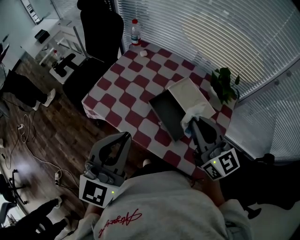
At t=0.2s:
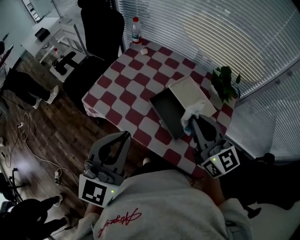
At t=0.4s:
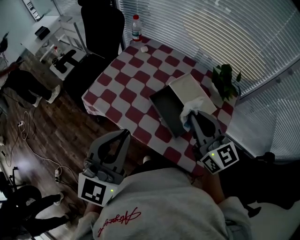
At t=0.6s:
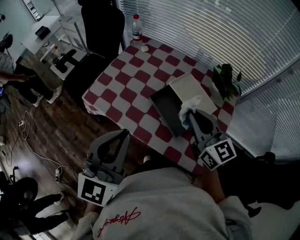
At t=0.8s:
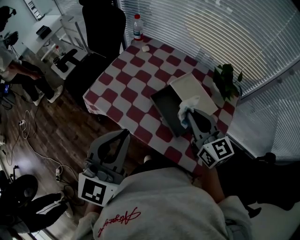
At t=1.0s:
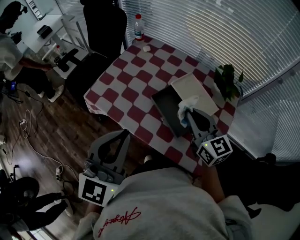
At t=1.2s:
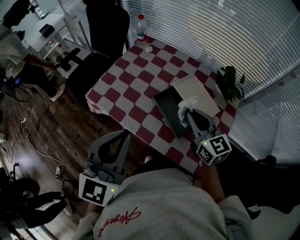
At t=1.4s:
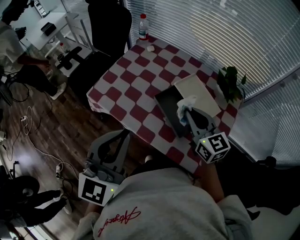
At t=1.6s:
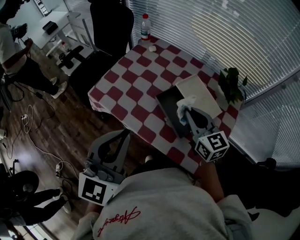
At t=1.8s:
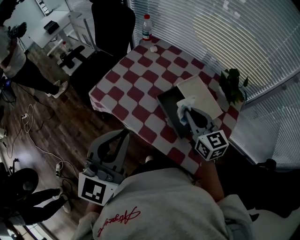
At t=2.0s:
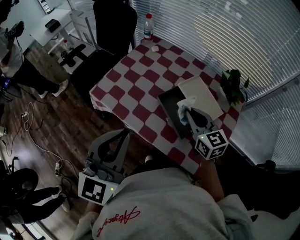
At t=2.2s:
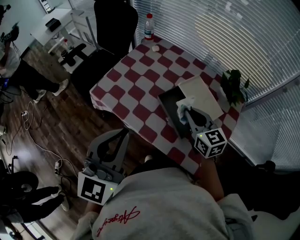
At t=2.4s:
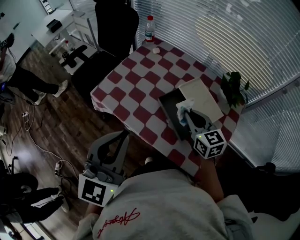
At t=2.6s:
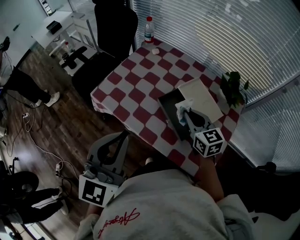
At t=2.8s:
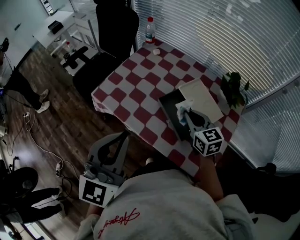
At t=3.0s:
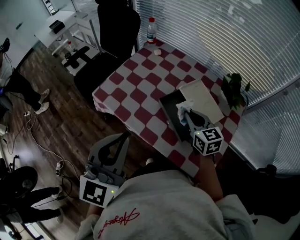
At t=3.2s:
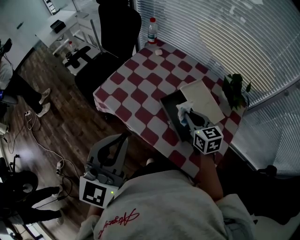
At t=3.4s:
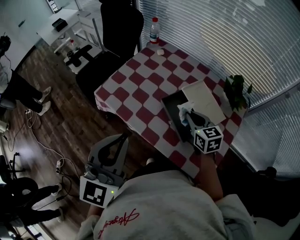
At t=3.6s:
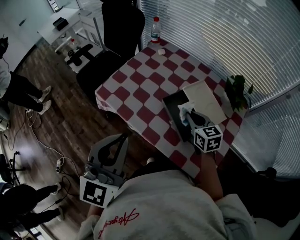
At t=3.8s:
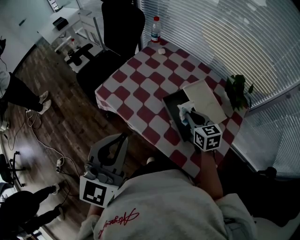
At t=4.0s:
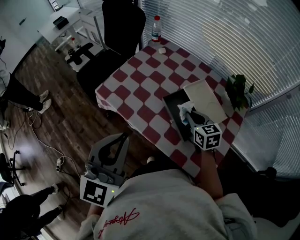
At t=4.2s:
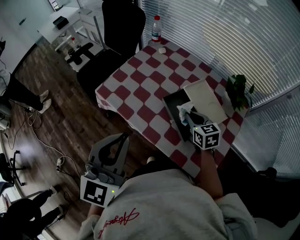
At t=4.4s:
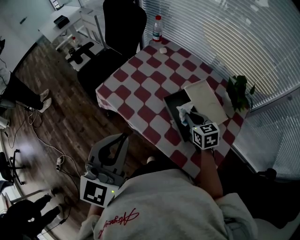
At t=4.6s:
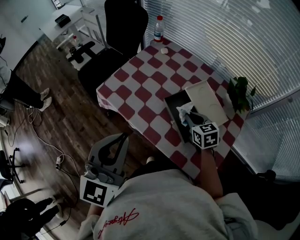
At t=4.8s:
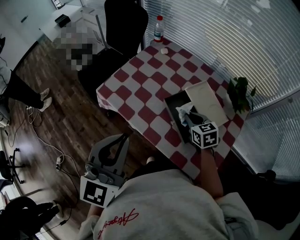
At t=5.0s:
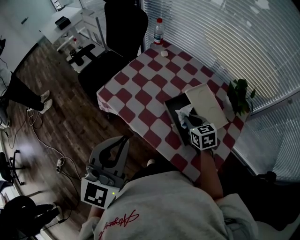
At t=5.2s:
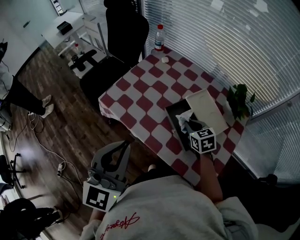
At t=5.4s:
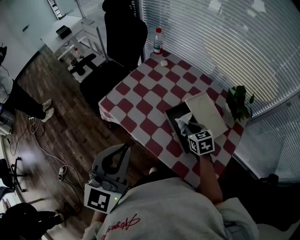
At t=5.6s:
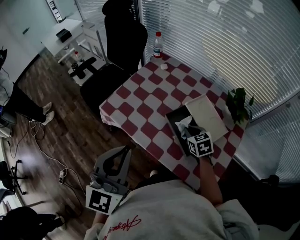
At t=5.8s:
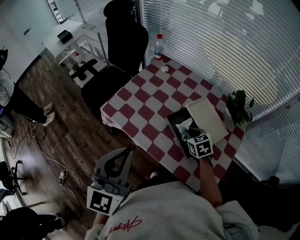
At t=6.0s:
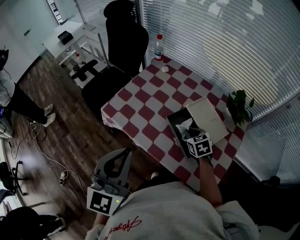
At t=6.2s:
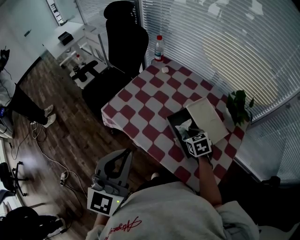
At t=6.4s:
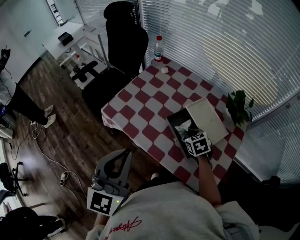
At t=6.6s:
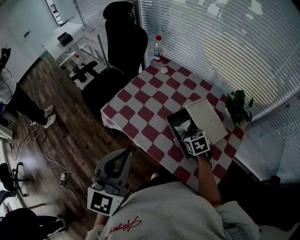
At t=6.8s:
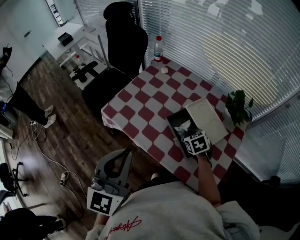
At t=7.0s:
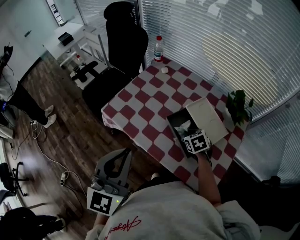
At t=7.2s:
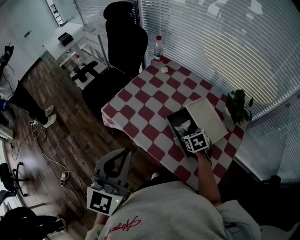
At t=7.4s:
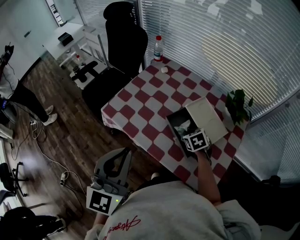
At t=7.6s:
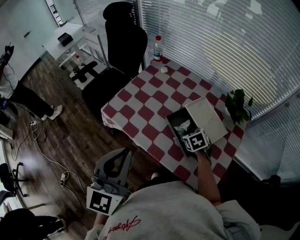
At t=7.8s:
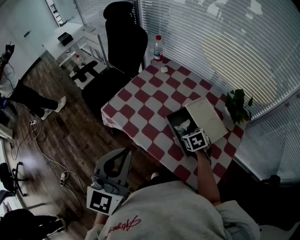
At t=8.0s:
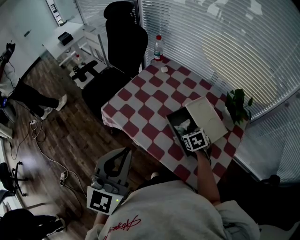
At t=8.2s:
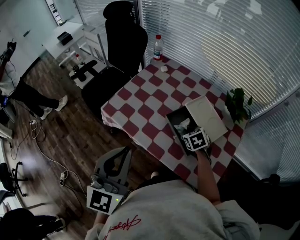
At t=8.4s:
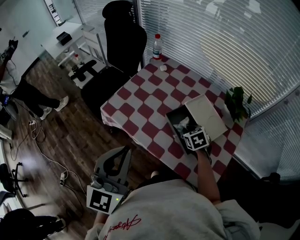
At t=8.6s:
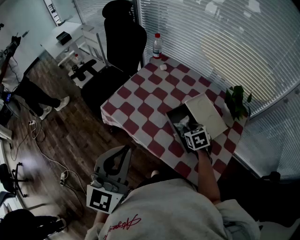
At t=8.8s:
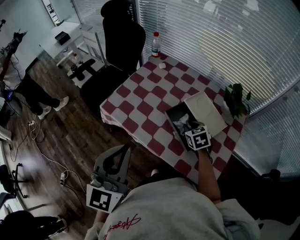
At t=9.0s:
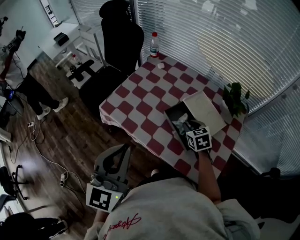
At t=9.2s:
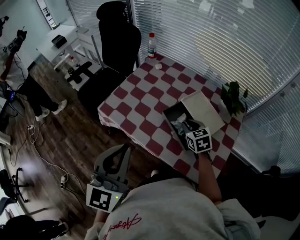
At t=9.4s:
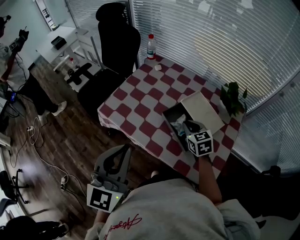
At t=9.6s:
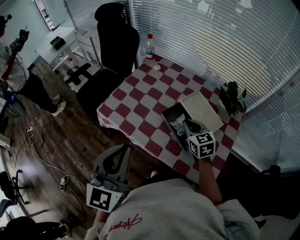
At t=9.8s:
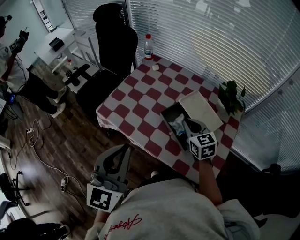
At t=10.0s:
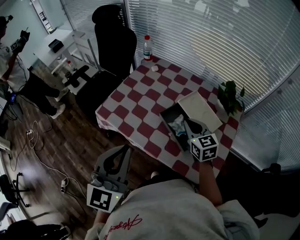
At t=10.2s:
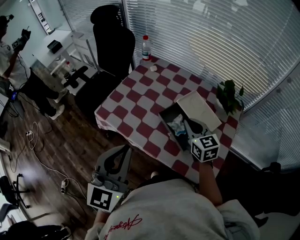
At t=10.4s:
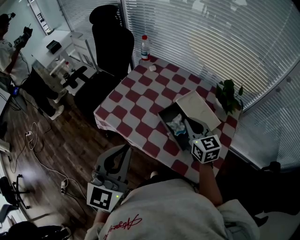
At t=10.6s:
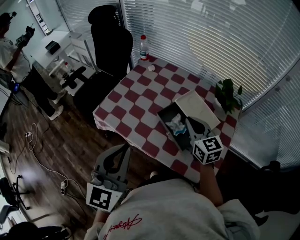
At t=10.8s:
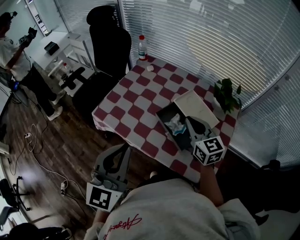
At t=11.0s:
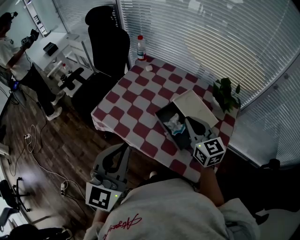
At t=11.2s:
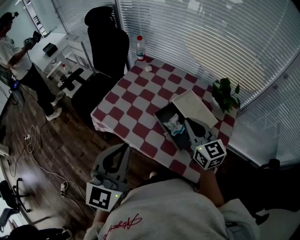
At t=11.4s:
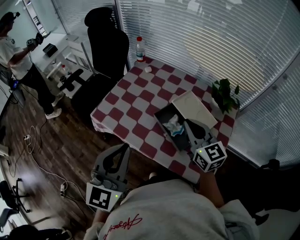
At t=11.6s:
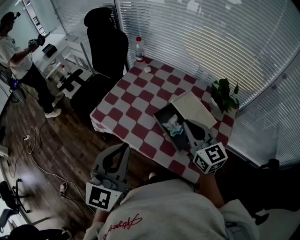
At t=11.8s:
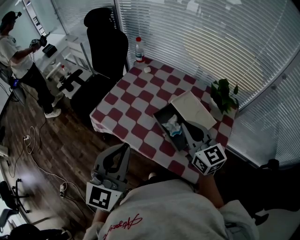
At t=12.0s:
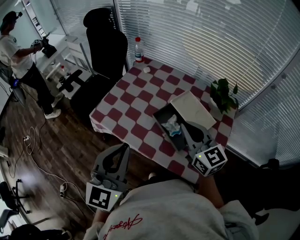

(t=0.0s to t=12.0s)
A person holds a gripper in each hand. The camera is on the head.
t=0.0s - t=1.6s: The right gripper travels downward by approximately 10 cm.
t=1.6s - t=3.0s: The right gripper travels downward by some 5 cm.
t=3.0s - t=4.4s: The right gripper travels downward by roughly 5 cm.
t=4.4s - t=6.0s: The grippers make only small movements.
t=6.0s - t=9.0s: The grippers stay close to where they were, moving slightly.
t=9.0s - t=10.4s: The right gripper is displaced upward by approximately 10 cm, swivels some 30 degrees, and closes.
t=10.4s - t=12.0s: The right gripper is displaced upward by roughly 10 cm.

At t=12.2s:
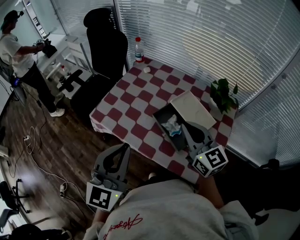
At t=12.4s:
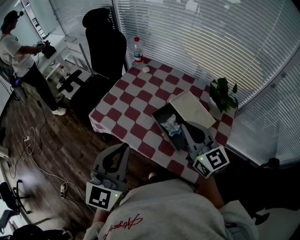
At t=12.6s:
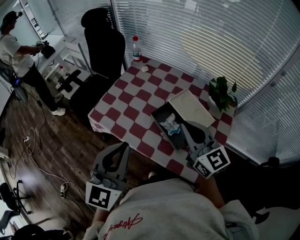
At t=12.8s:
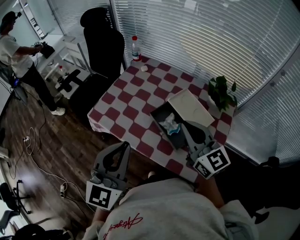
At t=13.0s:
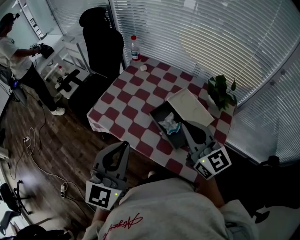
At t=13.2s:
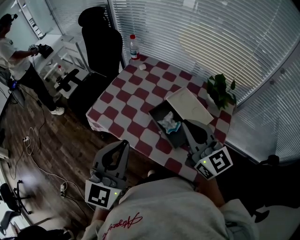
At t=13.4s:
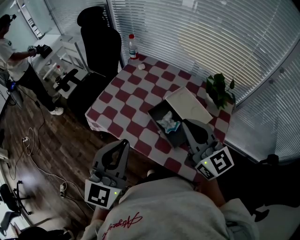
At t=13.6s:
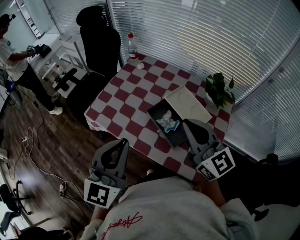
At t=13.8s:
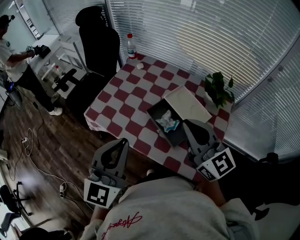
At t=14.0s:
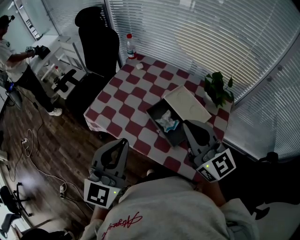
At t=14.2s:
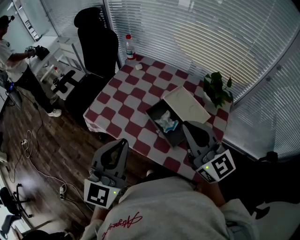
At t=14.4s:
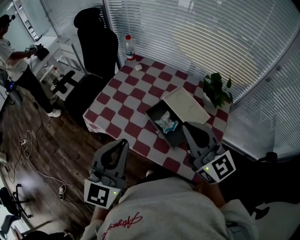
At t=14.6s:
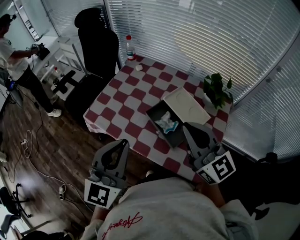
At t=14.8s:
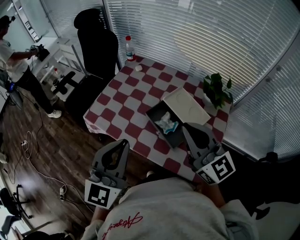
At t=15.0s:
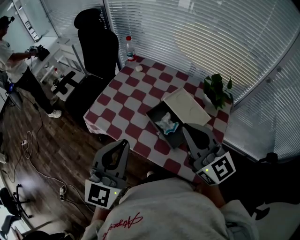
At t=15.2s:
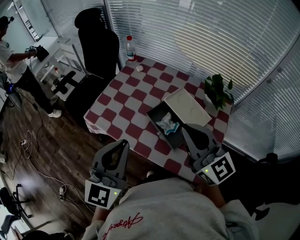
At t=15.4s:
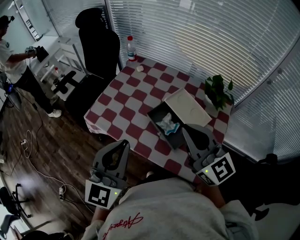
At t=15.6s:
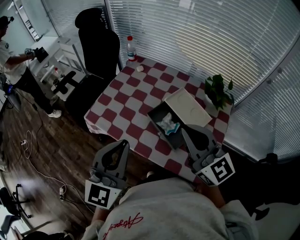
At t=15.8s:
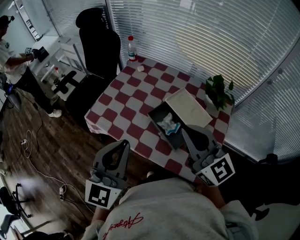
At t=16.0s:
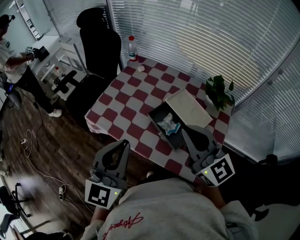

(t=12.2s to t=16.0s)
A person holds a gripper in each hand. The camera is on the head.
t=12.2s - t=13.4s: The right gripper ends up roughly 5 cm from where it was.
t=13.4s - t=16.0s: The grippers stay close to where they were, moving slightly.

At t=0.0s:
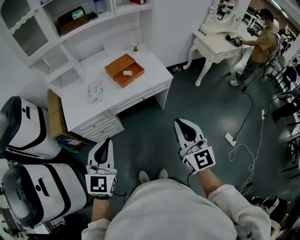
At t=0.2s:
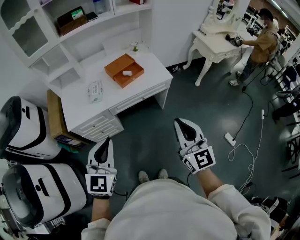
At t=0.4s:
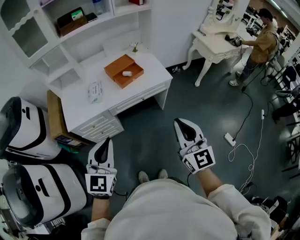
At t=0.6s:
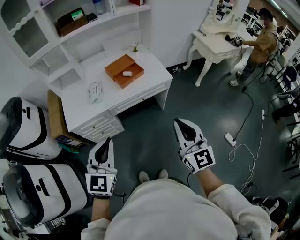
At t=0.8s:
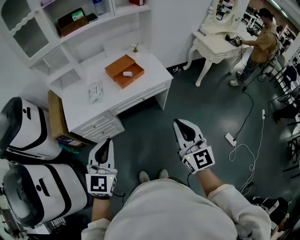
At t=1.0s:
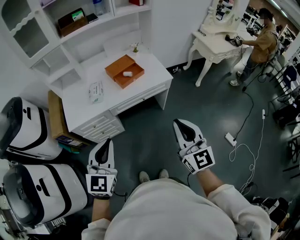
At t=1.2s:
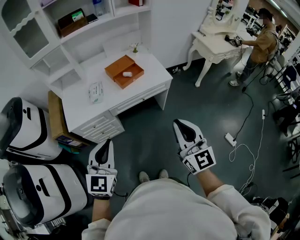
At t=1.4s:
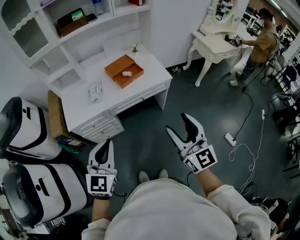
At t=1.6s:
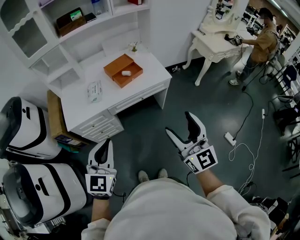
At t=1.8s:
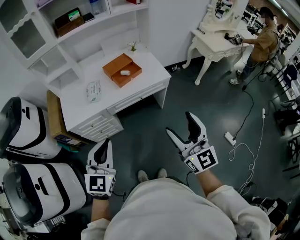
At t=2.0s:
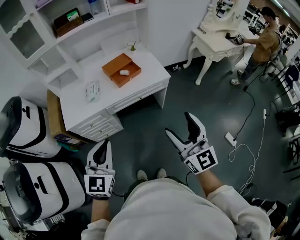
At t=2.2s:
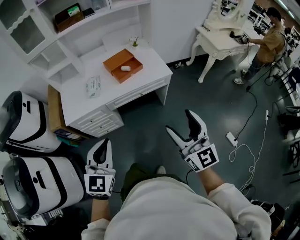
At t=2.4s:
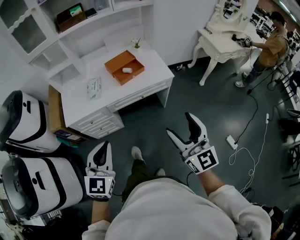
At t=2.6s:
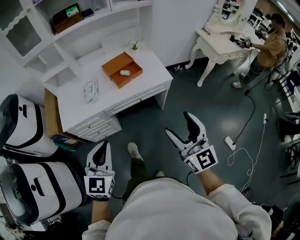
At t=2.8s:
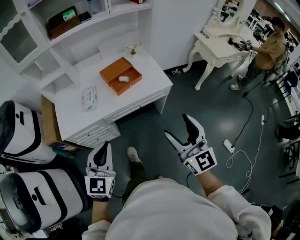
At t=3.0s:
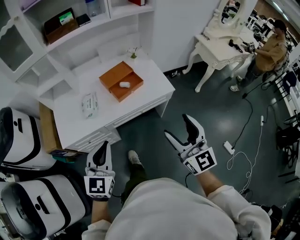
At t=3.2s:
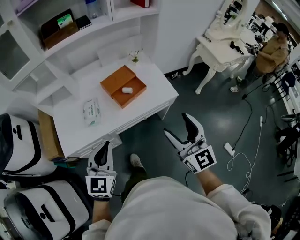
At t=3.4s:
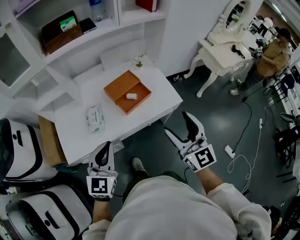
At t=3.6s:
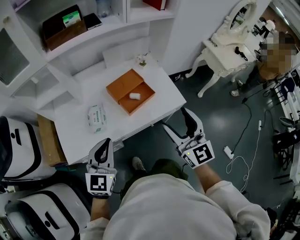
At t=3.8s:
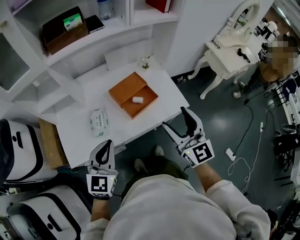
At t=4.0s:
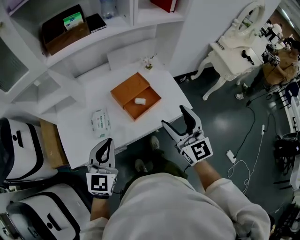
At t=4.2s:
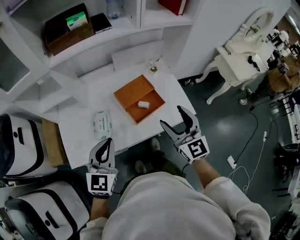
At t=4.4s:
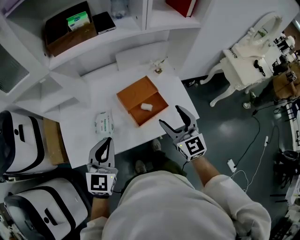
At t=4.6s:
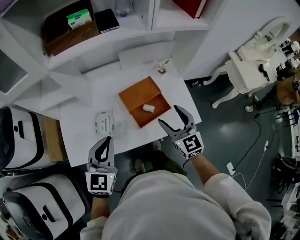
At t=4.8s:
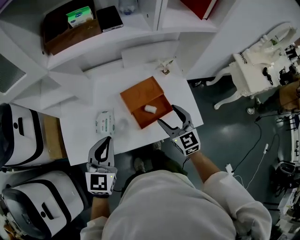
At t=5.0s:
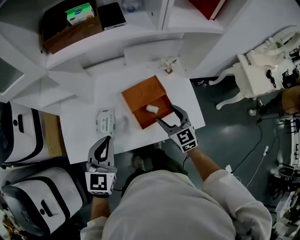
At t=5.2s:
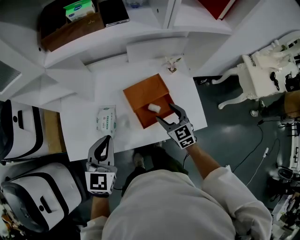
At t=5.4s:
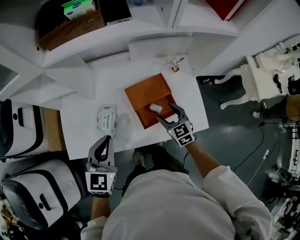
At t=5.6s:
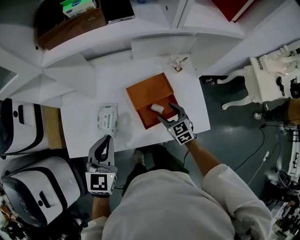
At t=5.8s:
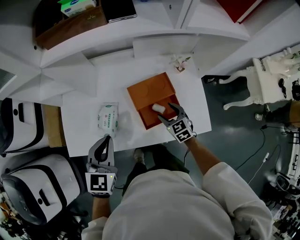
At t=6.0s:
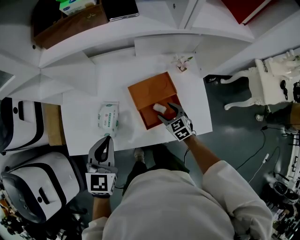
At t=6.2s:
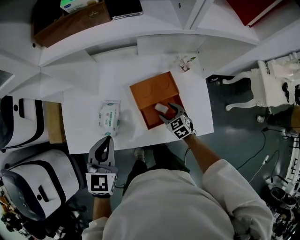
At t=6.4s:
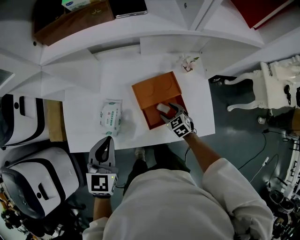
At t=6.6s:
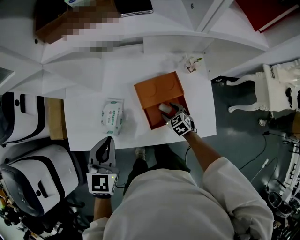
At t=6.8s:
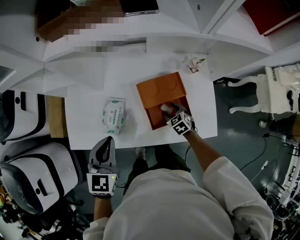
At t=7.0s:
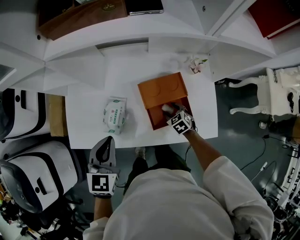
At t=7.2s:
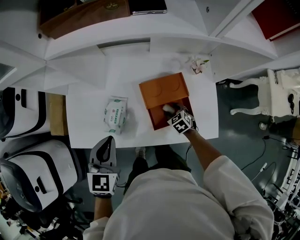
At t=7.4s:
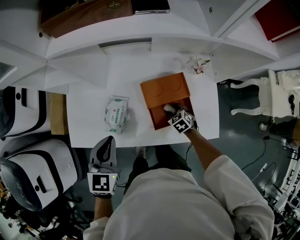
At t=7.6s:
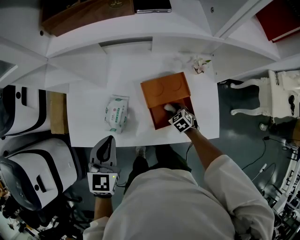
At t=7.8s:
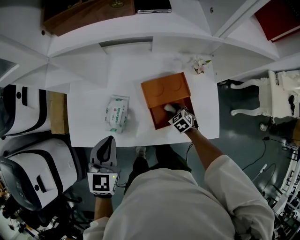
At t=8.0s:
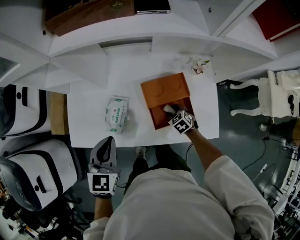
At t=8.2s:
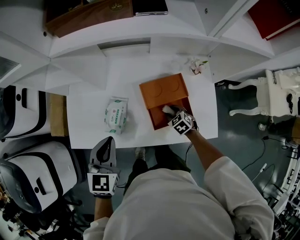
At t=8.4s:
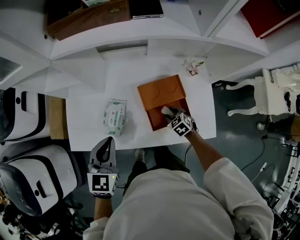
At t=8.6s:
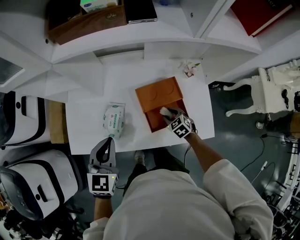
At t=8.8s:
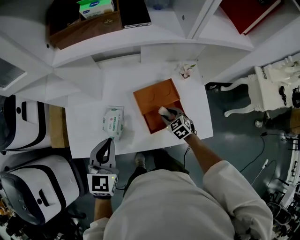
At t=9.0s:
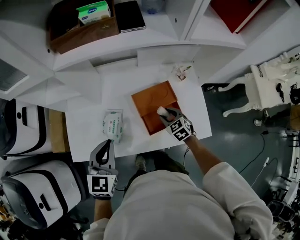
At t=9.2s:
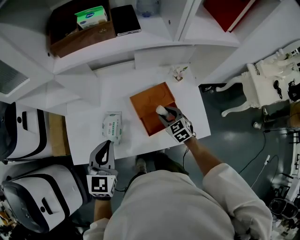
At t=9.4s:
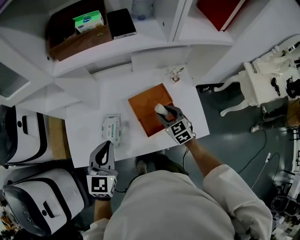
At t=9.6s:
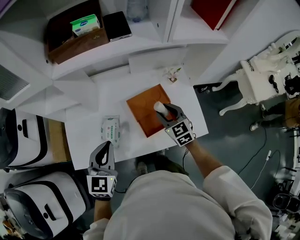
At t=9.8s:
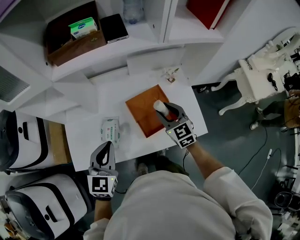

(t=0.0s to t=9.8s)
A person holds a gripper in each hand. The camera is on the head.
t=0.0s - t=1.4s: The right gripper opens.
t=1.4s - t=2.8s: The grippers both shift forward by roughly 10 cm.
t=2.8s - t=4.2s: Both grippers move forward, approximately 30 cm.
t=4.2s - t=5.6s: The right gripper is displaced downward and forward by about 30 cm, and tips its fingers downward by approximately 30 degrees, while the left gripper shifts some 10 cm forward and downward.
t=5.6s - t=7.0s: The right gripper goes about 15 cm downward, and turns by approximately 20 degrees.
t=7.0s - t=8.4s: The grippers move only a little.
t=8.4s - t=9.8s: The left gripper goes approximately 5 cm upward. The right gripper moves upward, some 25 cm, and points its fingers approximately 40 degrees further upward.
